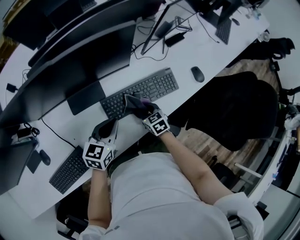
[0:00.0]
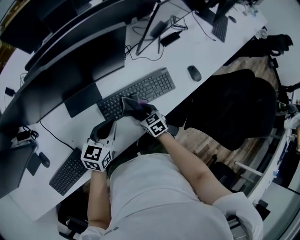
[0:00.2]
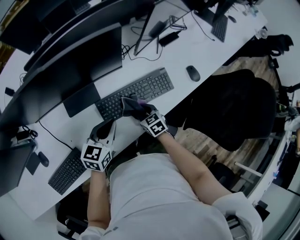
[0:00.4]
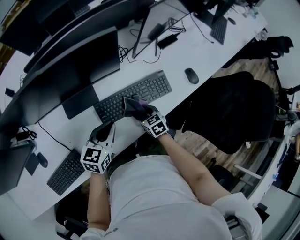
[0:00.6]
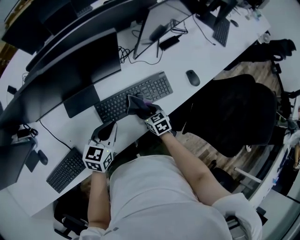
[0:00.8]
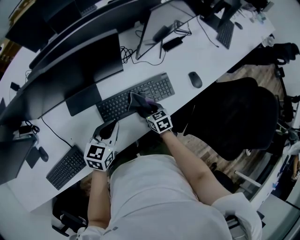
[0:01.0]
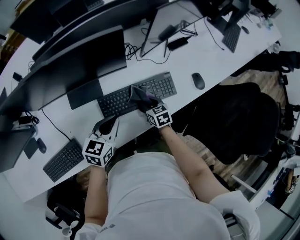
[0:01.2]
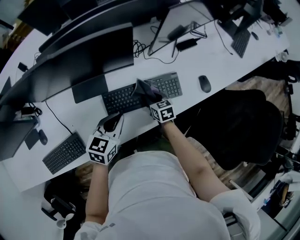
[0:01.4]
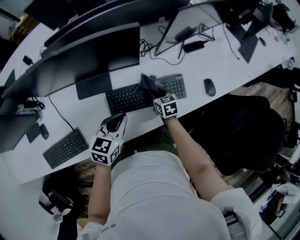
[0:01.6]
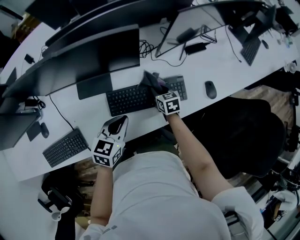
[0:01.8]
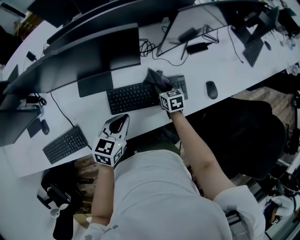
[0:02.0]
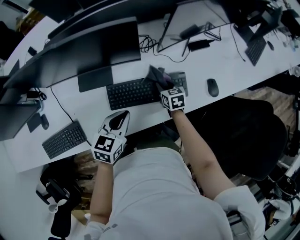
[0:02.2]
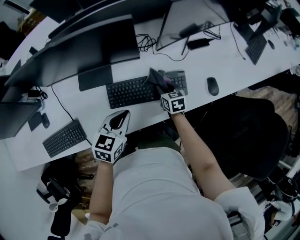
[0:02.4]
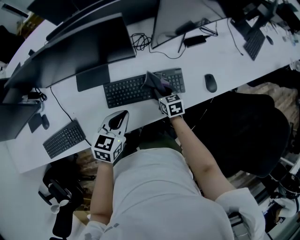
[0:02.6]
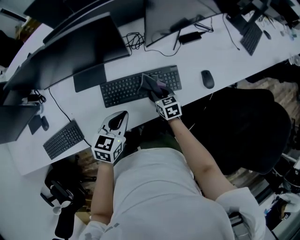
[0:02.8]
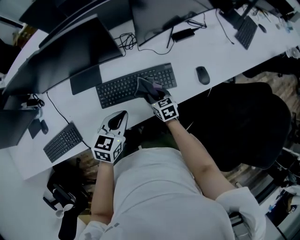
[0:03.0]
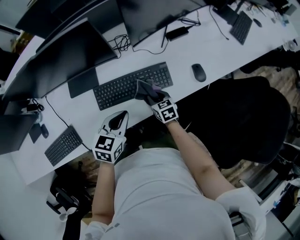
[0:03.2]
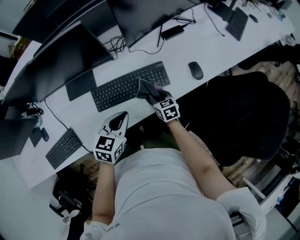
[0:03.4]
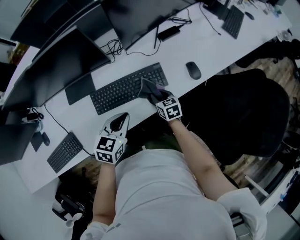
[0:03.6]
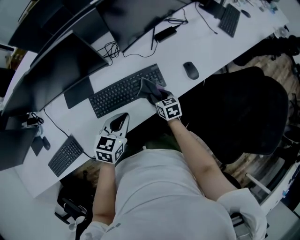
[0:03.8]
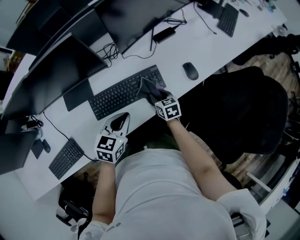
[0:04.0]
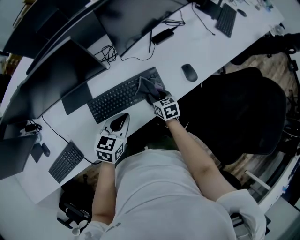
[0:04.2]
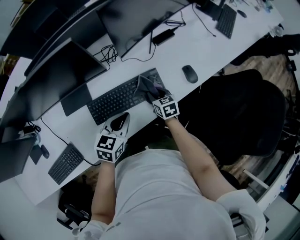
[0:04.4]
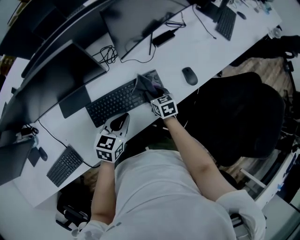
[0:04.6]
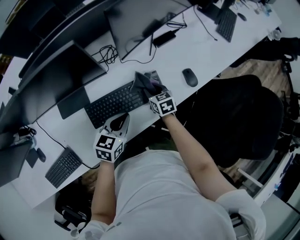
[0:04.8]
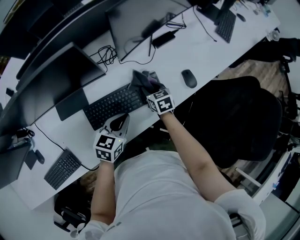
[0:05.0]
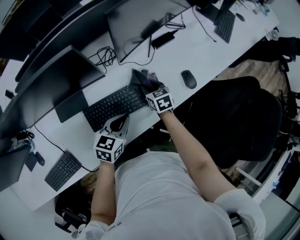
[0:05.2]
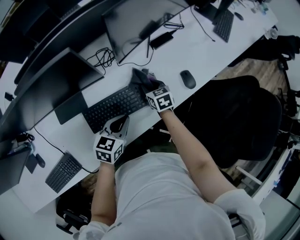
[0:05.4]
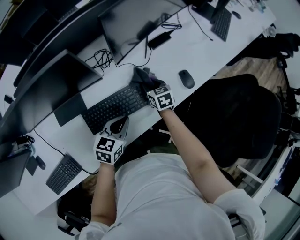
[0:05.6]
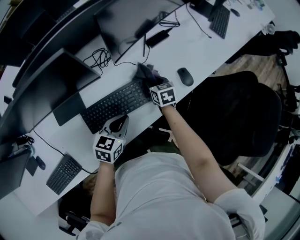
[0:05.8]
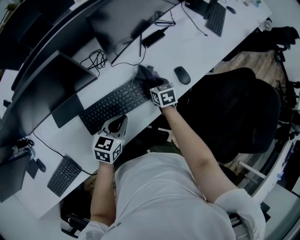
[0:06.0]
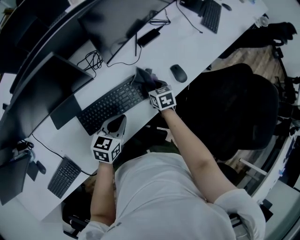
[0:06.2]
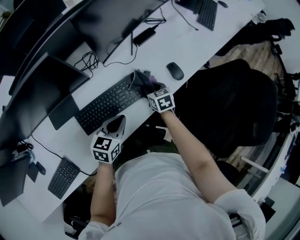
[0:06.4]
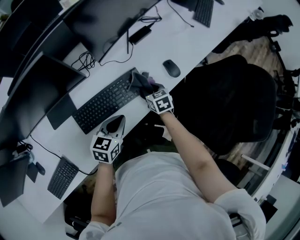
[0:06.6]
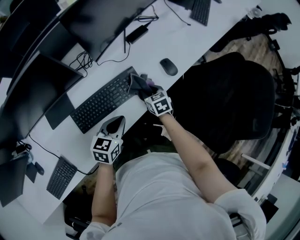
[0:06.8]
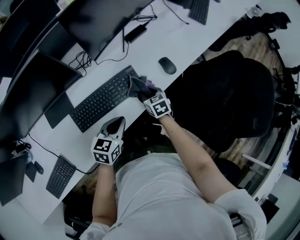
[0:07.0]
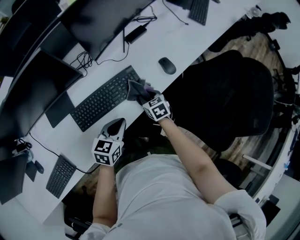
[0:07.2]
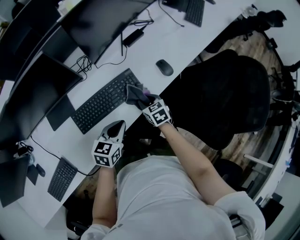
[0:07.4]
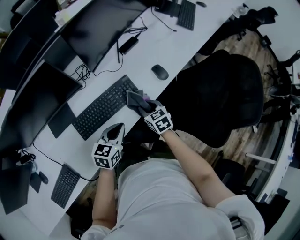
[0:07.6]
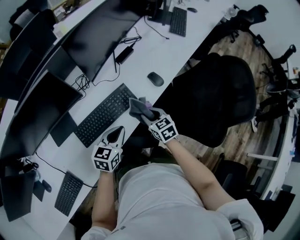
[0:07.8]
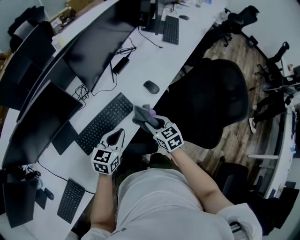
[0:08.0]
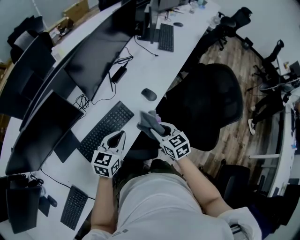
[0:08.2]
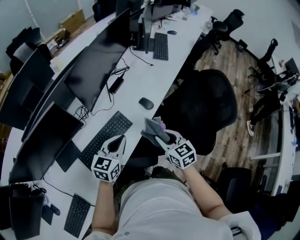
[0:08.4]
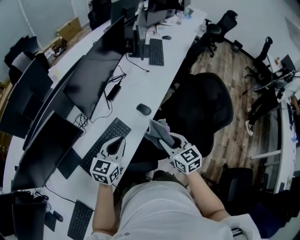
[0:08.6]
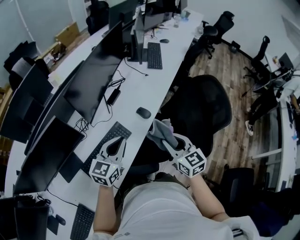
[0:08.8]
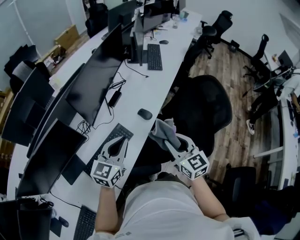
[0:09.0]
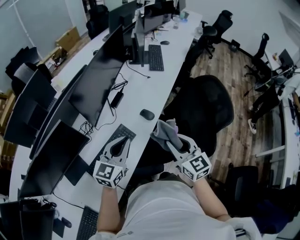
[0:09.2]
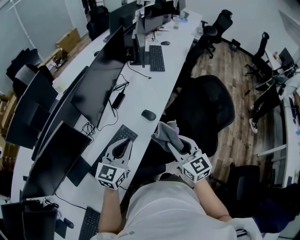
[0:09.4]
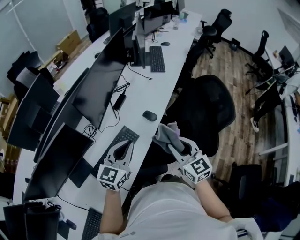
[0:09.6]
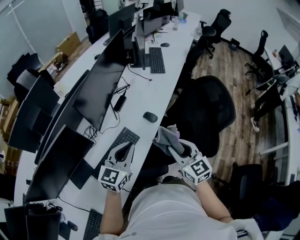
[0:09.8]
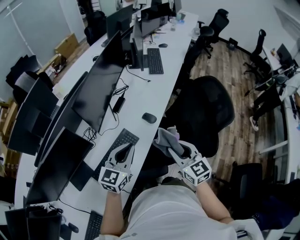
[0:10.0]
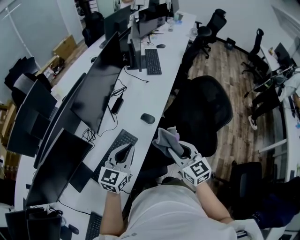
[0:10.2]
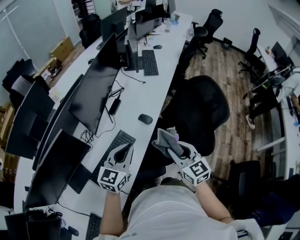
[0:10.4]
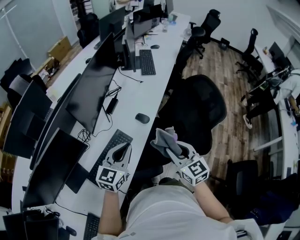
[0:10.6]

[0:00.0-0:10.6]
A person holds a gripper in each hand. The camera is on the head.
0:00.0 to 0:01.6: The right gripper is displaced forward and to the right by approximately 10 cm. Meanwhile the left gripper shifts some 5 cm to the right.
0:01.6 to 0:03.0: The right gripper shifts approximately 5 cm backward; the left gripper shifts some 5 cm to the right.
0:03.0 to 0:04.6: The left gripper heads forward, covering approximately 5 cm. The right gripper goes about 10 cm forward and to the right.
0:04.6 to 0:06.0: The right gripper moves forward, about 5 cm.
0:06.0 to 0:07.6: The left gripper moves backward and to the right, approximately 10 cm. The right gripper shifts some 15 cm backward.
0:07.6 to 0:09.0: The left gripper heads upward, covering some 20 cm, and changes its angle by some 30 degrees. Meanwhile the right gripper travels upward and to the right by roughly 30 cm, and swivels approximately 40 degrees.
0:09.0 to 0:10.6: The grippers move only a little.

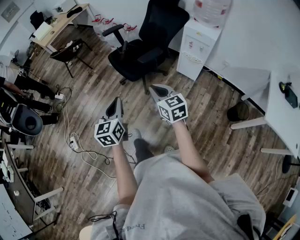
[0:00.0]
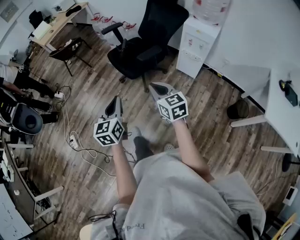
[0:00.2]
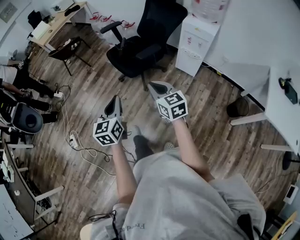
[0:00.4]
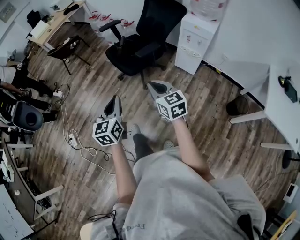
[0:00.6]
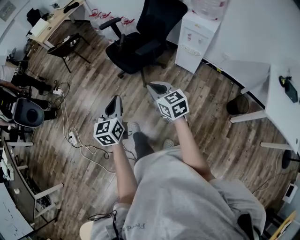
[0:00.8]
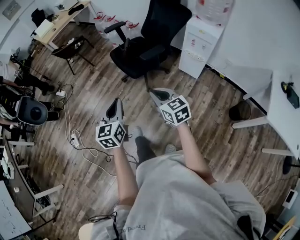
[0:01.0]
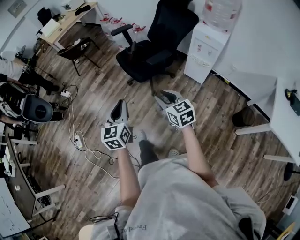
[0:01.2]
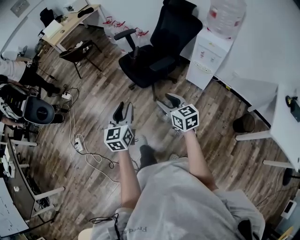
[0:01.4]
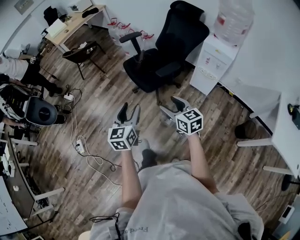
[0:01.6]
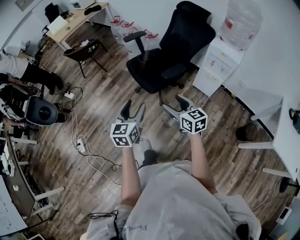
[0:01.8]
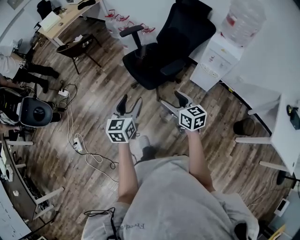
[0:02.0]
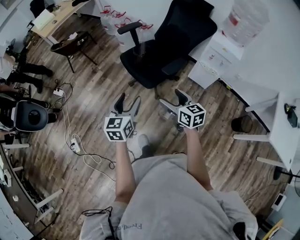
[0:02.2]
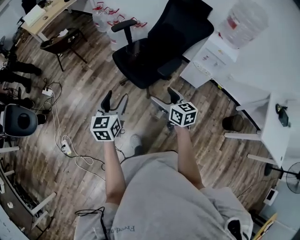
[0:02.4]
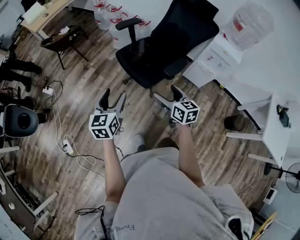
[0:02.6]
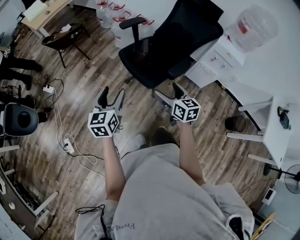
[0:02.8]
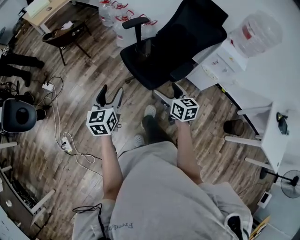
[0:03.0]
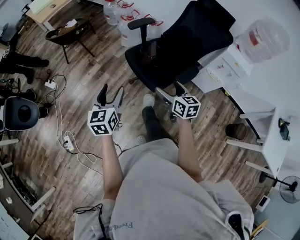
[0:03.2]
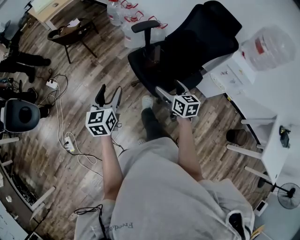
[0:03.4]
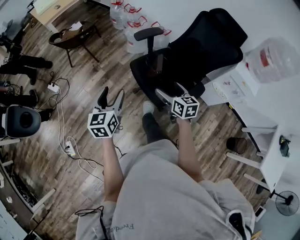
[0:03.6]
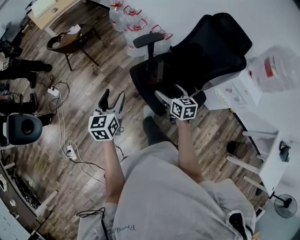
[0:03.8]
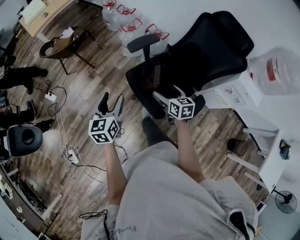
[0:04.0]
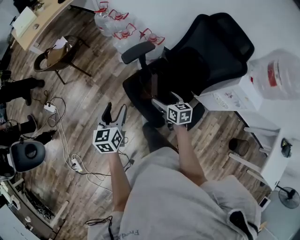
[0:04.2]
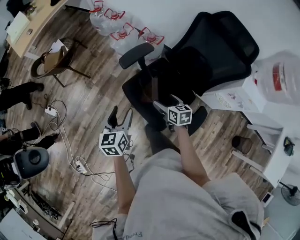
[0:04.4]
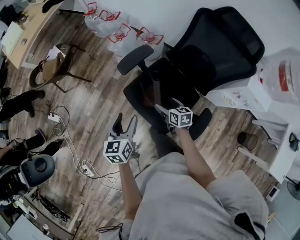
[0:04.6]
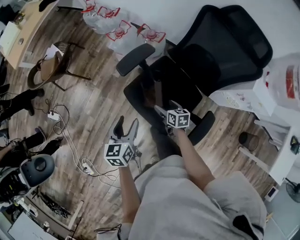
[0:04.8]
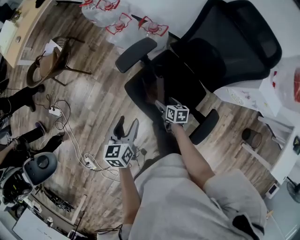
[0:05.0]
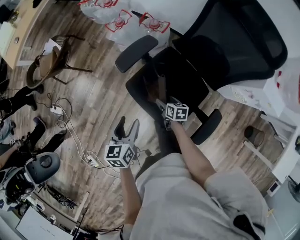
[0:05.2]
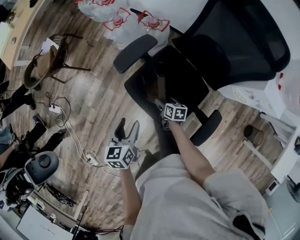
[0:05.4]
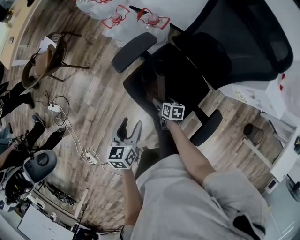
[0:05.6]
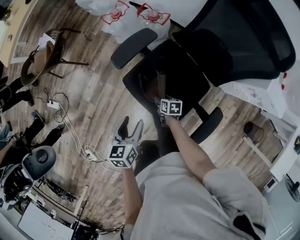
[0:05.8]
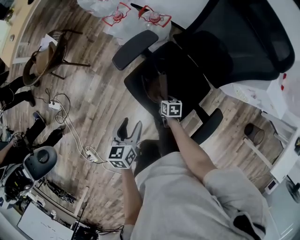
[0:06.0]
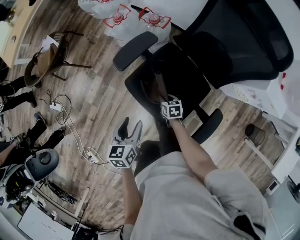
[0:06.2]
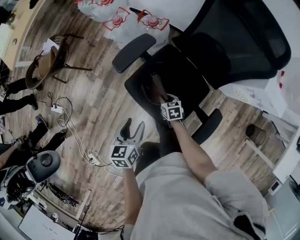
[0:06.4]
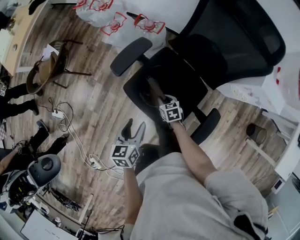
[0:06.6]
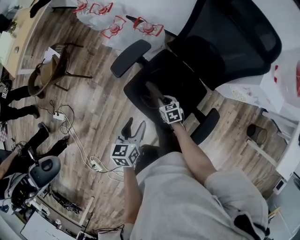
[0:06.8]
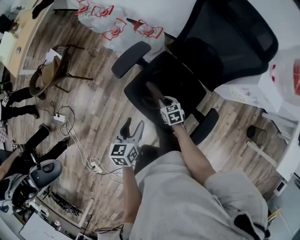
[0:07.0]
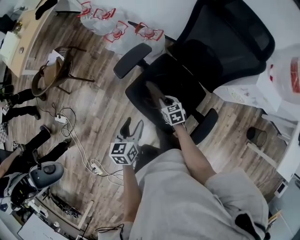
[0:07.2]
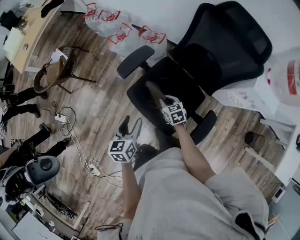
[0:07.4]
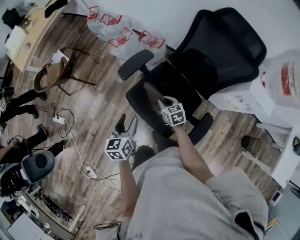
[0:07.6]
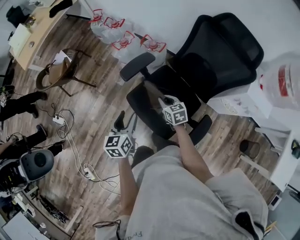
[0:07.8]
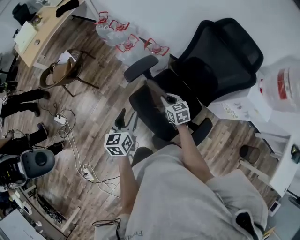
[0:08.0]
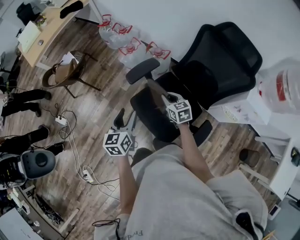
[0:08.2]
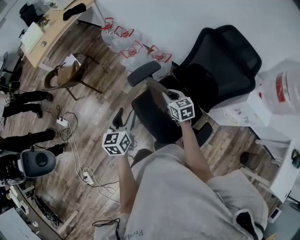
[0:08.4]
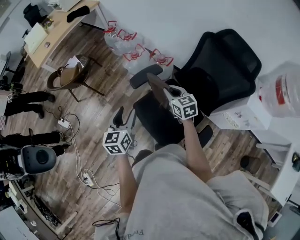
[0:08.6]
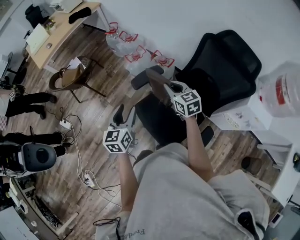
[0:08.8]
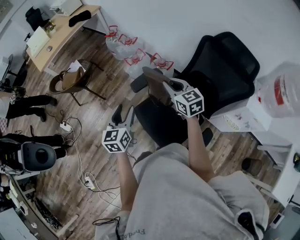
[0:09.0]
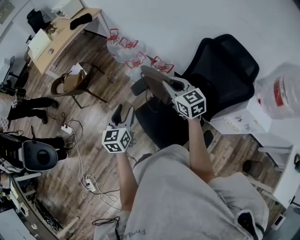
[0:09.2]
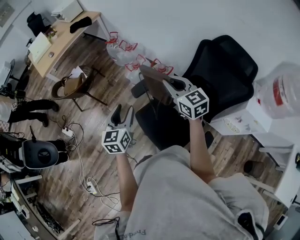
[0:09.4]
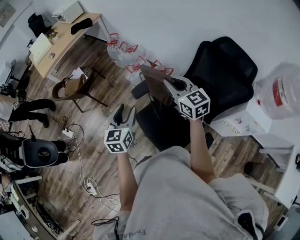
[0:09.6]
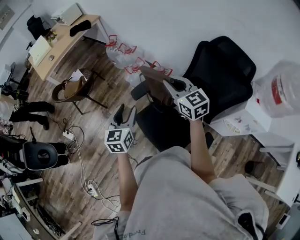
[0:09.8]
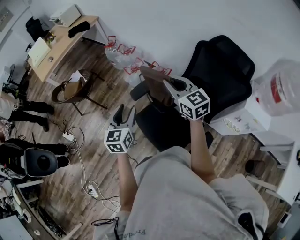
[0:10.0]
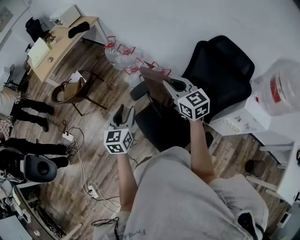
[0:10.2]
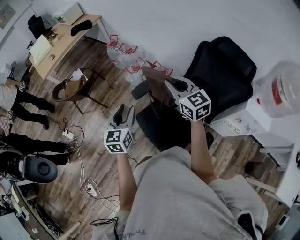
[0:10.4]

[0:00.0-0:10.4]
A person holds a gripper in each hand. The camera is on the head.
0:00.0 to 0:01.4: The left gripper opens, while the right gripper opens.
0:01.4 to 0:03.0: Both grippers move forward and to the left, some 35 cm. The right gripper opens up. Meanwhile the left gripper opens.
0:03.0 to 0:04.4: The left gripper heads forward, covering some 35 cm; the right gripper is displaced forward and downward by about 40 cm.
0:04.4 to 0:06.0: The right gripper moves downward, some 25 cm, swivels about 30 degrees, and closes its fingers, while the left gripper goes some 10 cm downward.
0:06.0 to 0:07.4: The left gripper moves upward, roughly 5 cm; the right gripper shifts some 15 cm upward, and turns by some 30 degrees.
0:07.4 to 0:09.0: The right gripper goes about 30 cm upward, and rotates some 30 degrees; the left gripper shifts about 15 cm upward and forward, and rotates roughly 20 degrees.
0:09.0 to 0:10.4: The right gripper moves upward, roughly 10 cm.

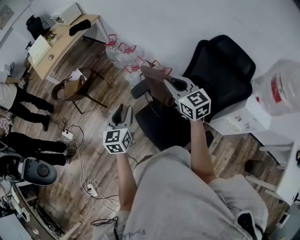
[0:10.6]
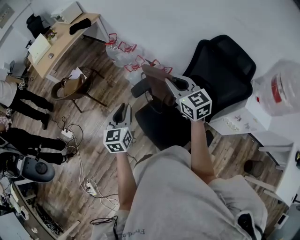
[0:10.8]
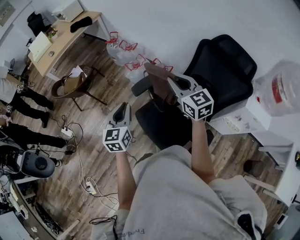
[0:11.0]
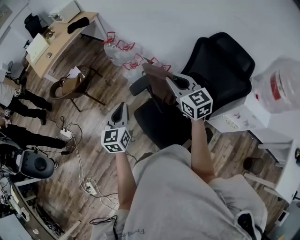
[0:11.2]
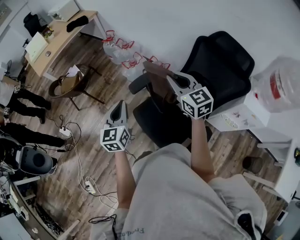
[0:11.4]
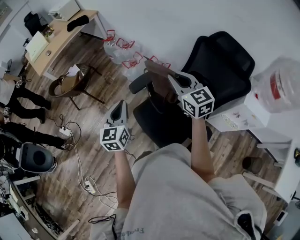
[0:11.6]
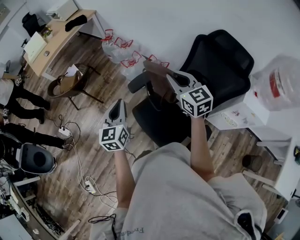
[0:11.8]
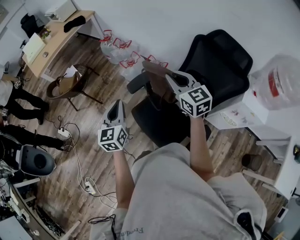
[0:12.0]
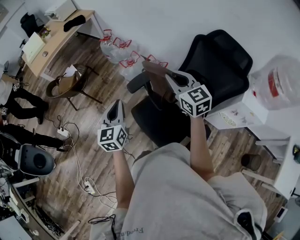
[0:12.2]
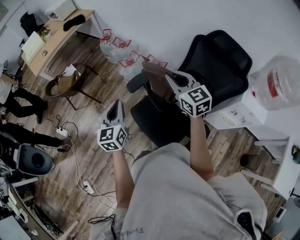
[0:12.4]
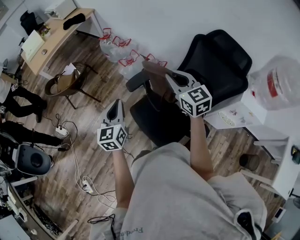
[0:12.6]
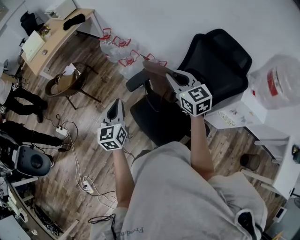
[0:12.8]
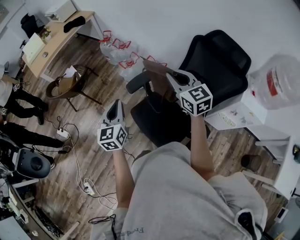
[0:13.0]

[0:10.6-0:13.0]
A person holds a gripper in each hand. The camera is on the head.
0:10.6 to 0:11.8: The left gripper closes up.
0:11.8 to 0:13.0: Neither gripper changes place.
